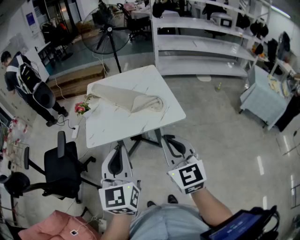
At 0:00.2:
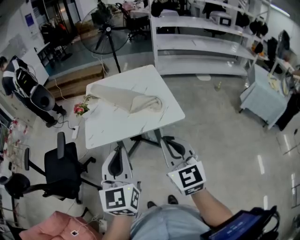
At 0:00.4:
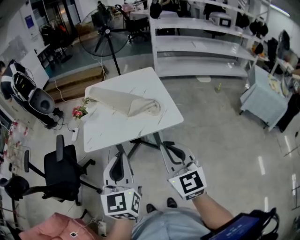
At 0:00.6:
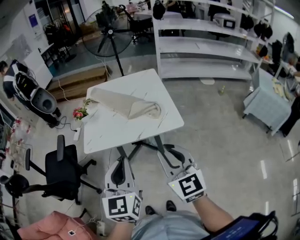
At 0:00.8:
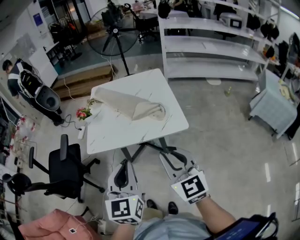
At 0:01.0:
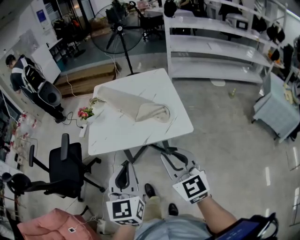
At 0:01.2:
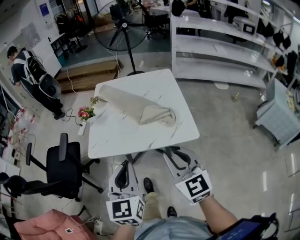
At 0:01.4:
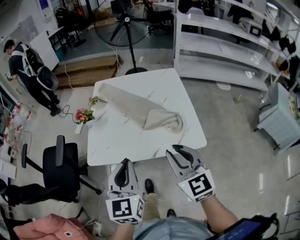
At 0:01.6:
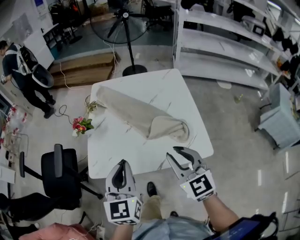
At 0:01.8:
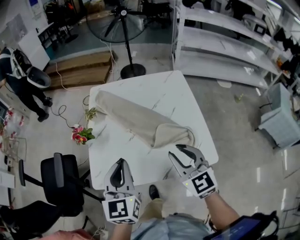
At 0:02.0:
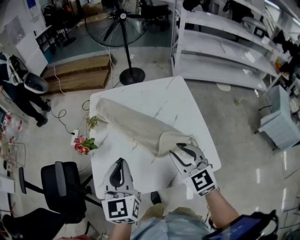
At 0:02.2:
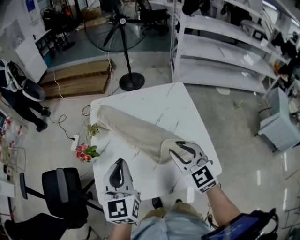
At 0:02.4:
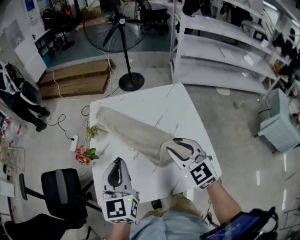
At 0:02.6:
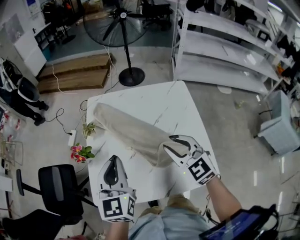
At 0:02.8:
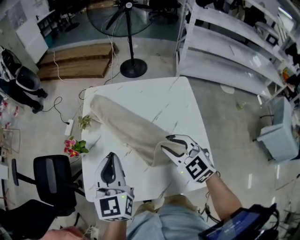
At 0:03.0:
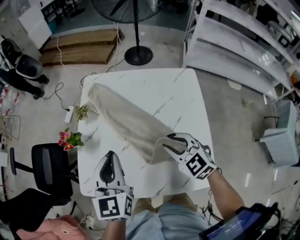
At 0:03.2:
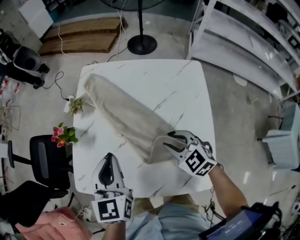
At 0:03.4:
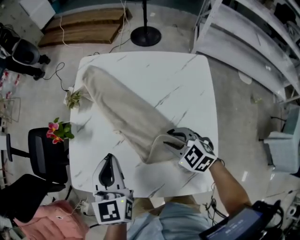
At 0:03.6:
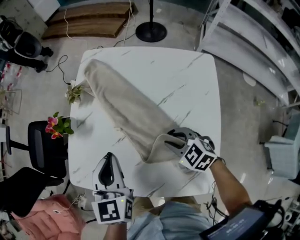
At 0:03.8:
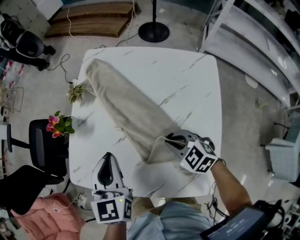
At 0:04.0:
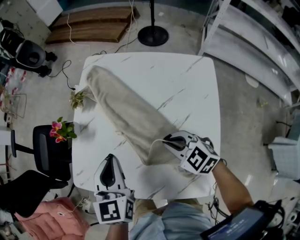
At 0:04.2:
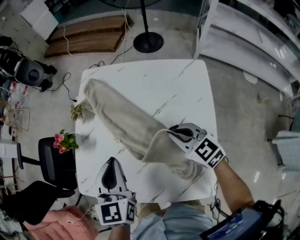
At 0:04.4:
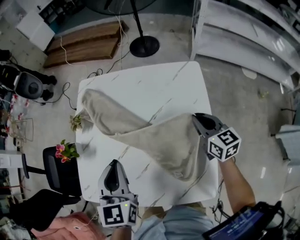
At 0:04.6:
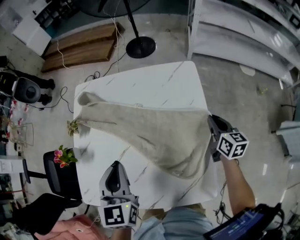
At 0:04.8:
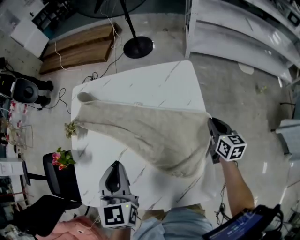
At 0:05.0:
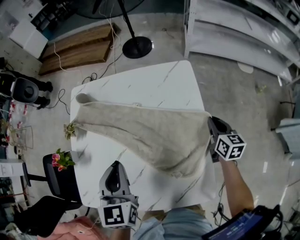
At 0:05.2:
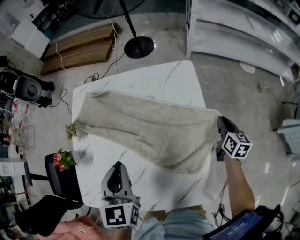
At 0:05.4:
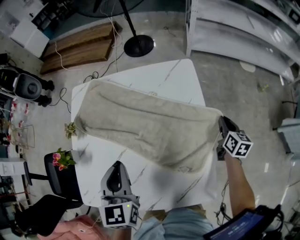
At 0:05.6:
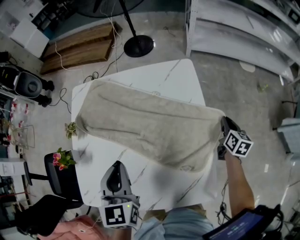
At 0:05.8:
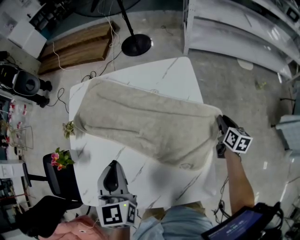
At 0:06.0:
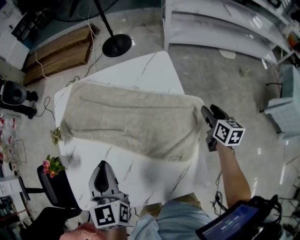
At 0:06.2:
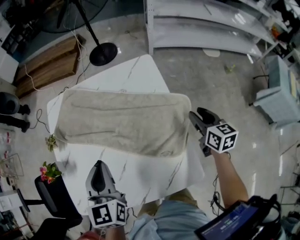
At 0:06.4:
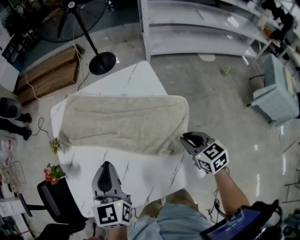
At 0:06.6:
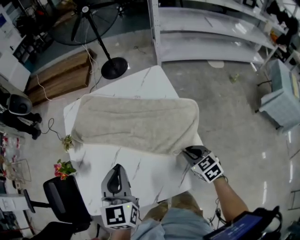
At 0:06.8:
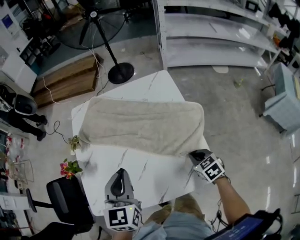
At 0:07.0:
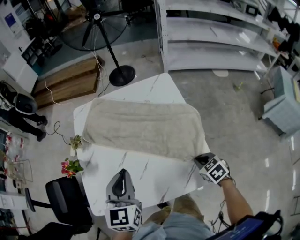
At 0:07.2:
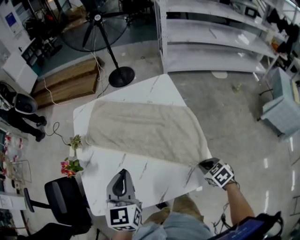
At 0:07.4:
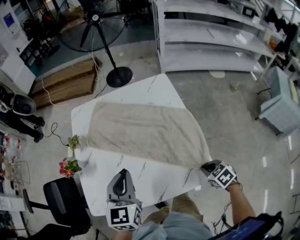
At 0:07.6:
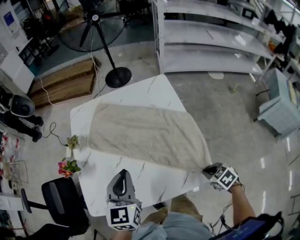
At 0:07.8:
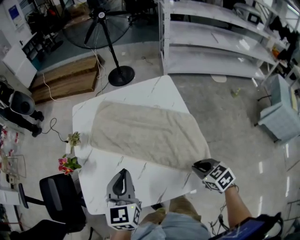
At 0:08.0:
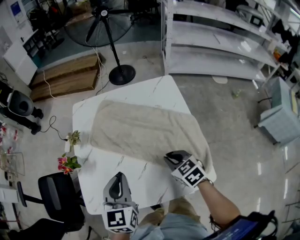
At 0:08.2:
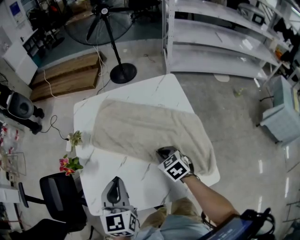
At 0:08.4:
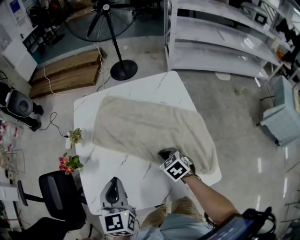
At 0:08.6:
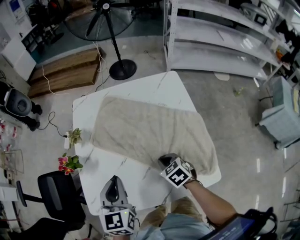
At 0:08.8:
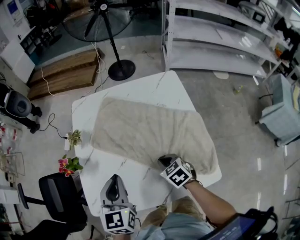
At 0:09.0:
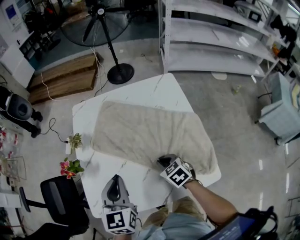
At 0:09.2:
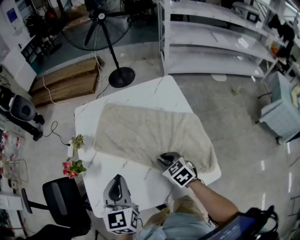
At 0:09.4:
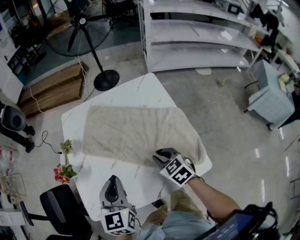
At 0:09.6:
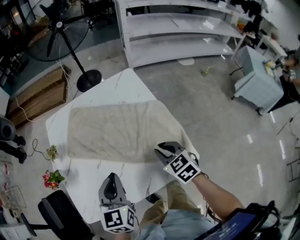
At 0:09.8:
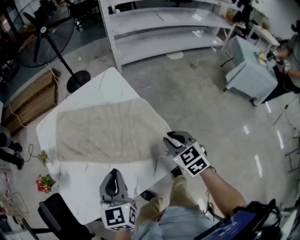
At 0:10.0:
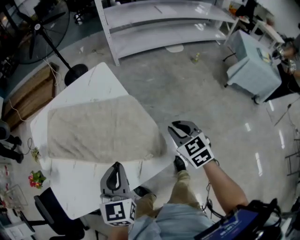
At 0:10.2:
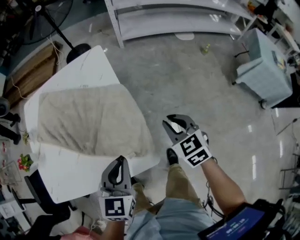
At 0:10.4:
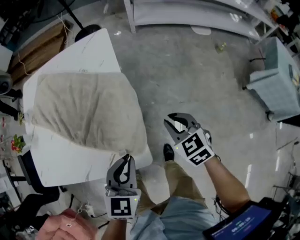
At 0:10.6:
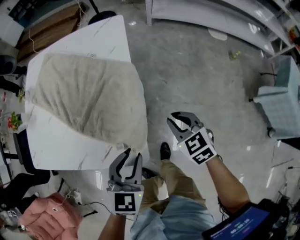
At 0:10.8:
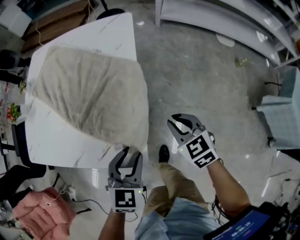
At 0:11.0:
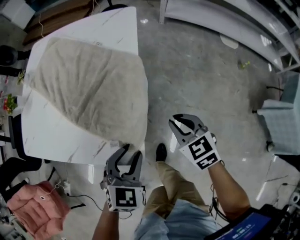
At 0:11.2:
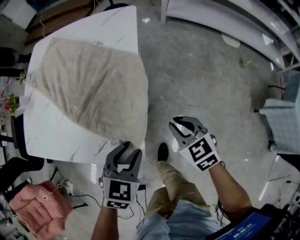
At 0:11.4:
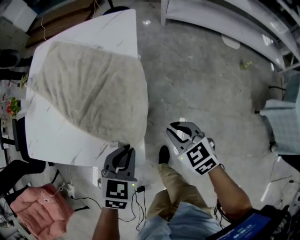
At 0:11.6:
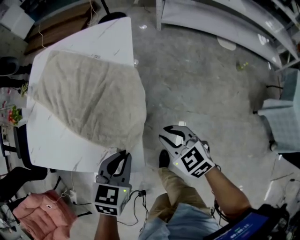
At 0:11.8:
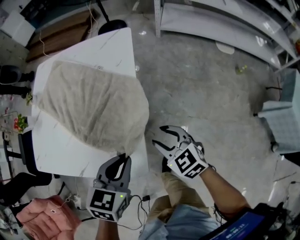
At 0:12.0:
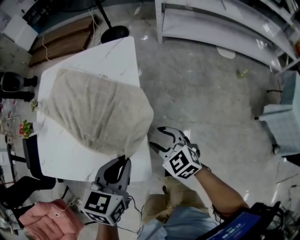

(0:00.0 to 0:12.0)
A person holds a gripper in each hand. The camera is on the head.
0:00.0 - 0:01.6: The right gripper travels forward by roughly 25 cm, and opens, while the left gripper is displaced forward and downward by some 25 cm.
0:01.6 - 0:03.0: The right gripper goes approximately 25 cm forward and downward, and changes its angle by some 30 degrees. The left gripper heads forward, covering roughly 20 cm.
0:03.0 - 0:04.4: The left gripper moves to the right, about 5 cm; the right gripper moves to the right, some 20 cm, changes its angle by about 40 degrees, and closes.
0:04.4 - 0:06.0: The right gripper is displaced to the right by approximately 20 cm, rotates about 30 degrees, and opens.
0:06.0 - 0:07.6: The left gripper moves backward, approximately 10 cm; the right gripper moves backward and to the left, some 30 cm, angles its fingers downward, by approximately 30 degrees, and closes.
0:07.6 - 0:09.0: The right gripper heads forward and to the left, covering about 25 cm. The left gripper moves to the left, approximately 5 cm.
0:09.0 - 0:10.4: The left gripper shifts by approximately 40 cm, and swivels some 20 degrees. The right gripper moves some 10 cm upward and comes back.
0:10.4 - 0:12.0: The left gripper heads forward, covering approximately 5 cm, and opens, then closes once more, while the right gripper shifts roughly 5 cm to the left, rotates about 20 degrees, and opens its fingers.

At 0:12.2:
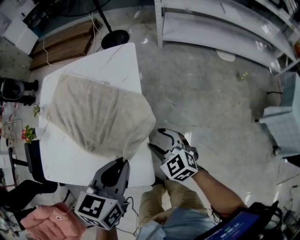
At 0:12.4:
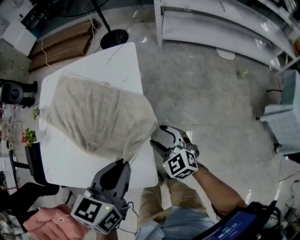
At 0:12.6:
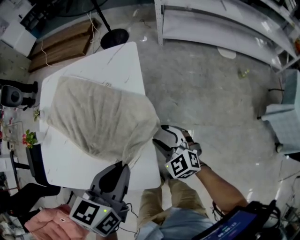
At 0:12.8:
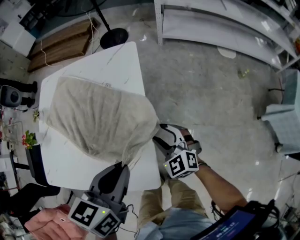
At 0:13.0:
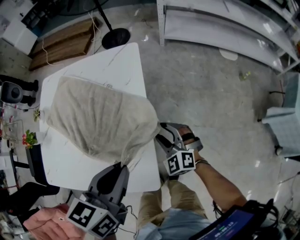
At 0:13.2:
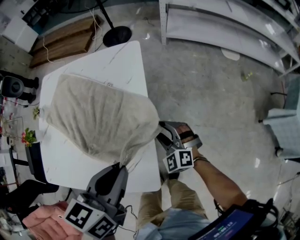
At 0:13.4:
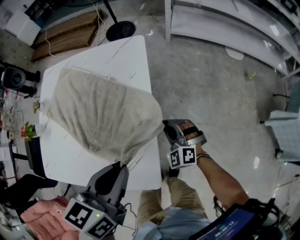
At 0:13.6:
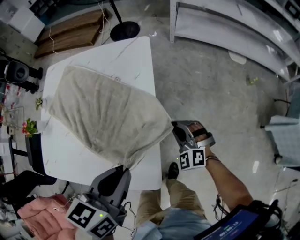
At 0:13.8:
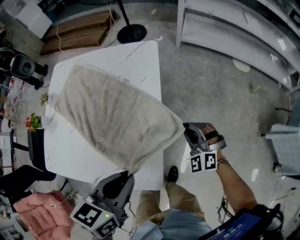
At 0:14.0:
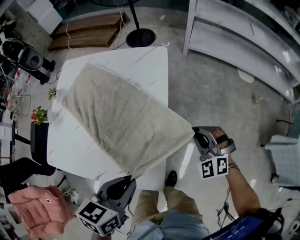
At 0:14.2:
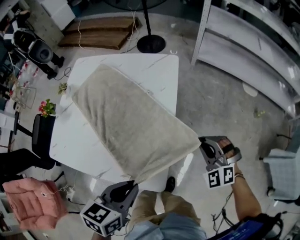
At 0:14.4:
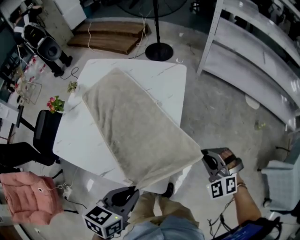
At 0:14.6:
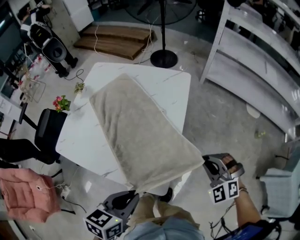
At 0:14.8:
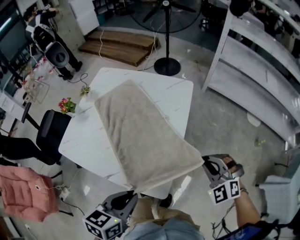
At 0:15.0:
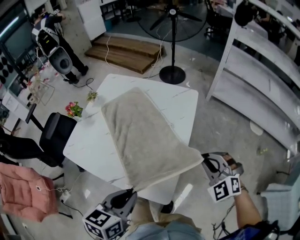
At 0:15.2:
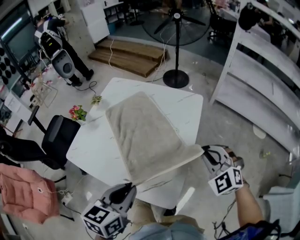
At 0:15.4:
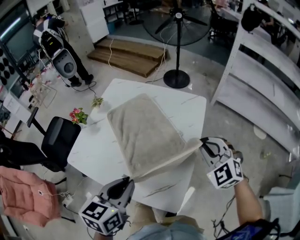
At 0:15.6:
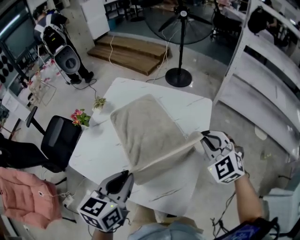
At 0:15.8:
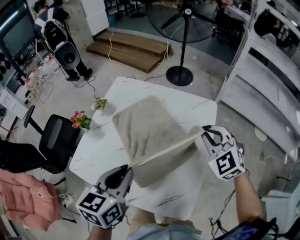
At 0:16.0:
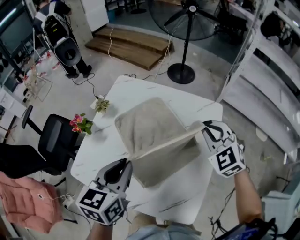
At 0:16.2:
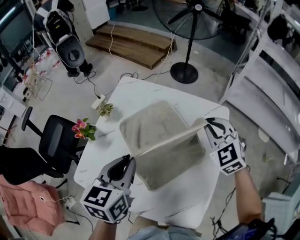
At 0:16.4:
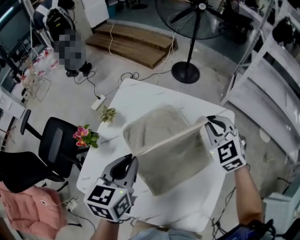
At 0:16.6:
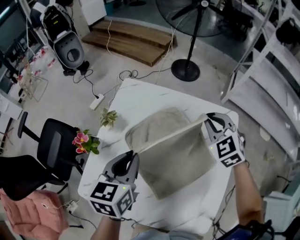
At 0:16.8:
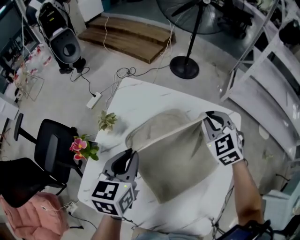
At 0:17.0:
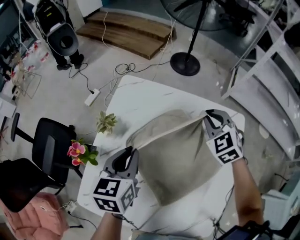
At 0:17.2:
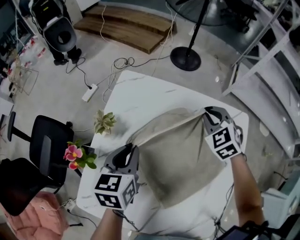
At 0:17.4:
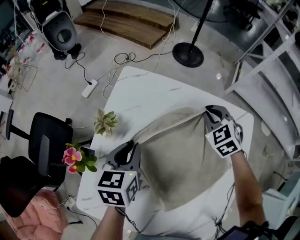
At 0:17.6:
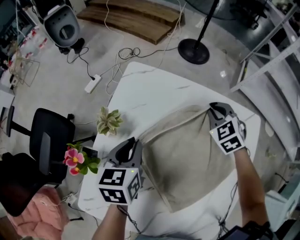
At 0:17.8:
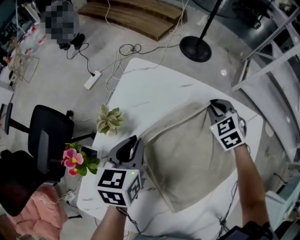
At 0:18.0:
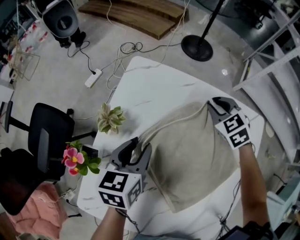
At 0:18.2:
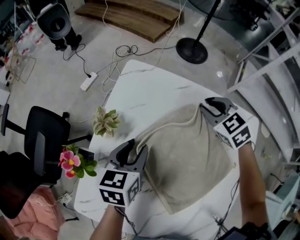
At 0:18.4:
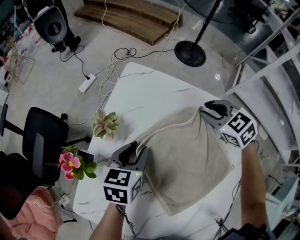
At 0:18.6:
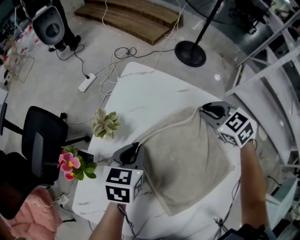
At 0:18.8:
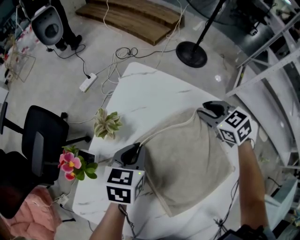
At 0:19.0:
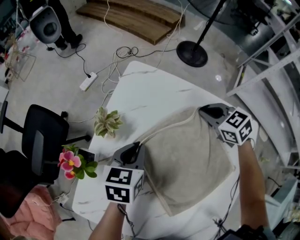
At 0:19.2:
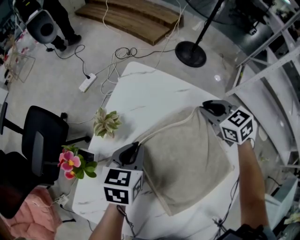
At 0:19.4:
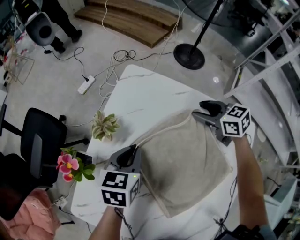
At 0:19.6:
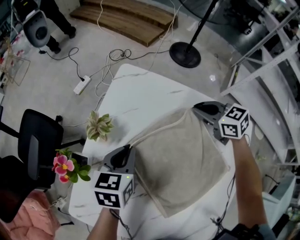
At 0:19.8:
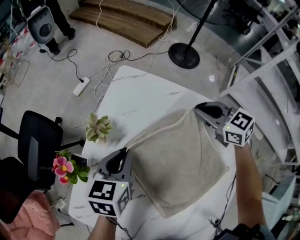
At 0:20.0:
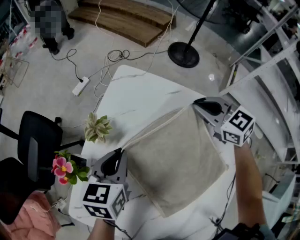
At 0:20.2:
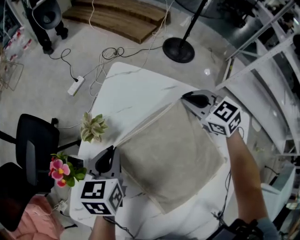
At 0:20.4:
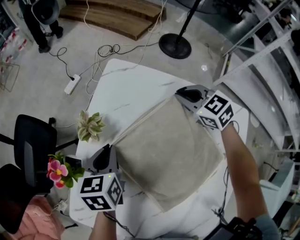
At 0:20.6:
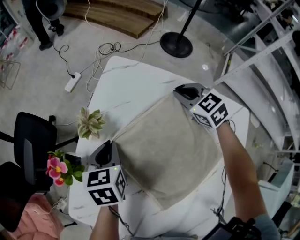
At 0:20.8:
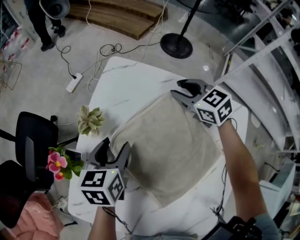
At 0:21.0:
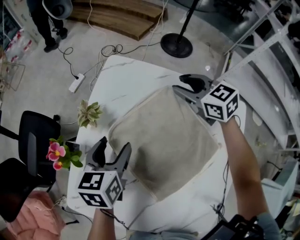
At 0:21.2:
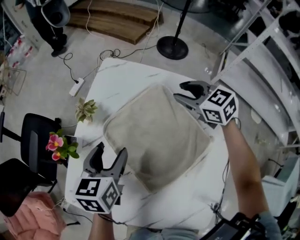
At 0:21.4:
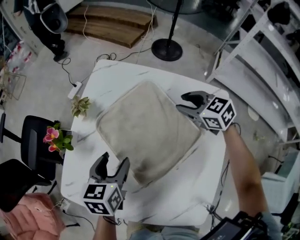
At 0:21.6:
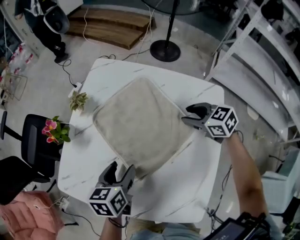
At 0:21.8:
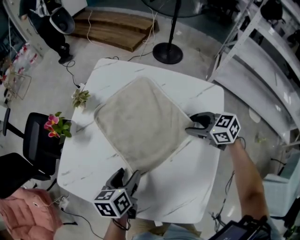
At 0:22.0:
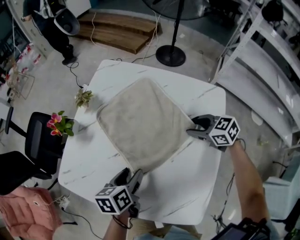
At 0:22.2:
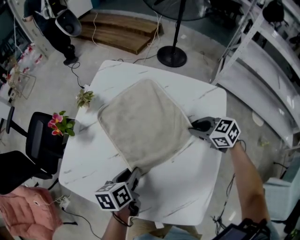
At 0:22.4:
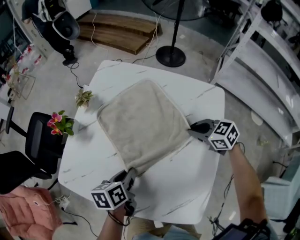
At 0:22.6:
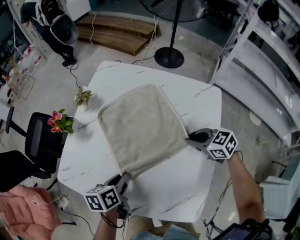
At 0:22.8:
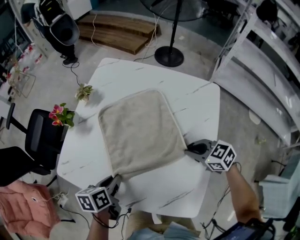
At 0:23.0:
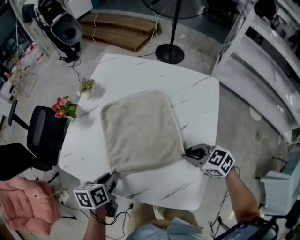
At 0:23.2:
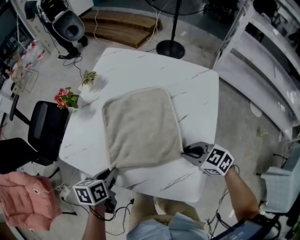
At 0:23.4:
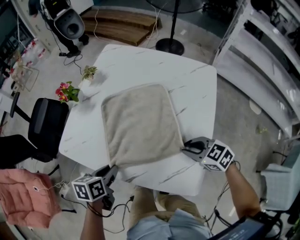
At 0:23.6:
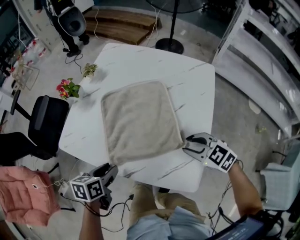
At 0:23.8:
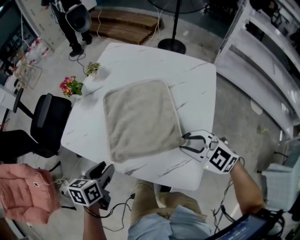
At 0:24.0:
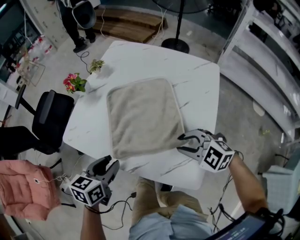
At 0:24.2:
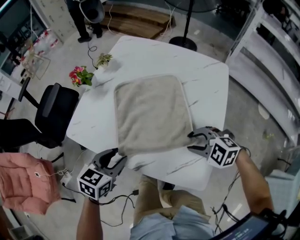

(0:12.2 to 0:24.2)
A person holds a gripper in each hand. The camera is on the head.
0:12.2 - 0:13.8: The right gripper shifts some 10 cm forward and to the right, turns by about 40 degrees, and closes.
0:13.8 - 0:15.2: The right gripper goes approximately 20 cm upward and to the left. The left gripper heads to the left, covering roughly 10 cm, and turns by some 20 degrees.
0:15.2 - 0:16.6: The two grippers go some 35 cm forward and to the left.
0:16.6 - 0:18.2: The left gripper shifts approximately 15 cm downward and forward, and opens its fingers. Meanwhile the right gripper moves downward, forward and to the left, about 20 cm, and turns by roughly 20 degrees.
0:18.2 - 0:19.8: The right gripper rotates approximately 20 degrees, and opens and closes again. The left gripper closes its fingers.
0:19.8 - 0:21.2: The left gripper heads backward, covering approximately 5 cm, and opens up. Meanwhile the right gripper opens up.
0:21.2 - 0:22.6: The left gripper heads backward and downward, covering about 20 cm, turns by roughly 30 degrees, and closes its fingers. The right gripper is displaced backward by roughly 25 cm, and closes.
0:22.6 - 0:24.2: The left gripper travels backward and to the left by approximately 10 cm, swivels roughly 40 degrees, and opens. The right gripper moves backward and to the left, approximately 20 cm, twists roughly 40 degrees counterclockwise, seen from behind, and opens its fingers.
